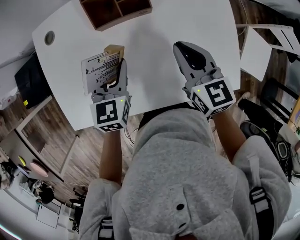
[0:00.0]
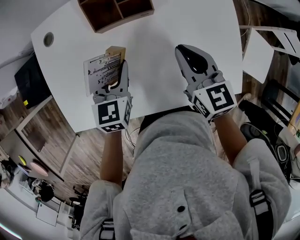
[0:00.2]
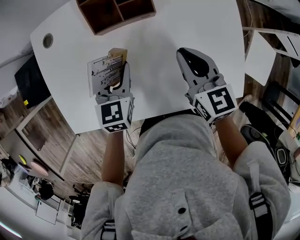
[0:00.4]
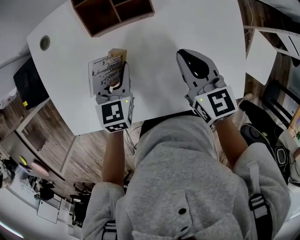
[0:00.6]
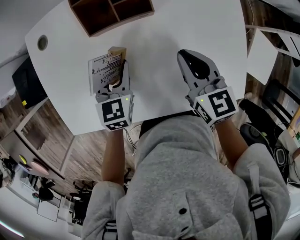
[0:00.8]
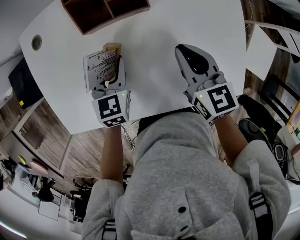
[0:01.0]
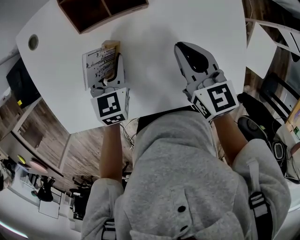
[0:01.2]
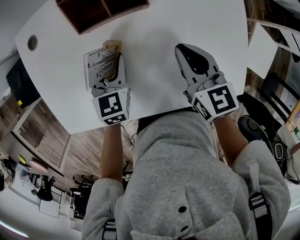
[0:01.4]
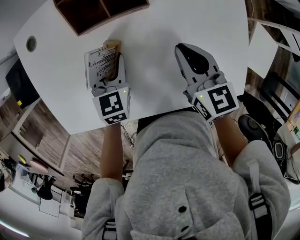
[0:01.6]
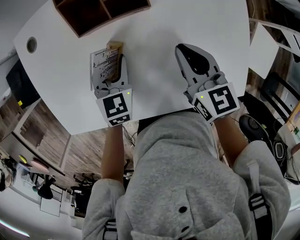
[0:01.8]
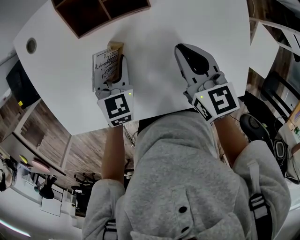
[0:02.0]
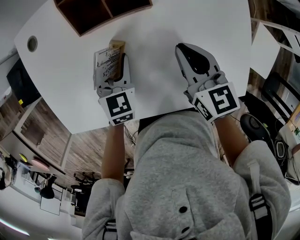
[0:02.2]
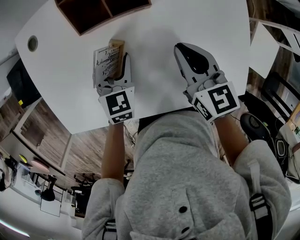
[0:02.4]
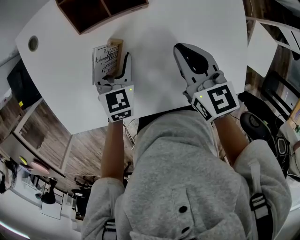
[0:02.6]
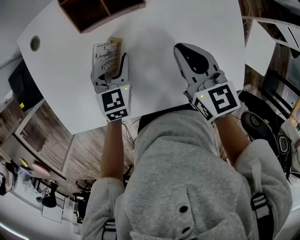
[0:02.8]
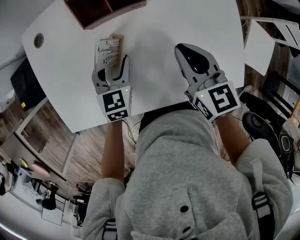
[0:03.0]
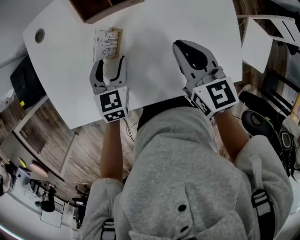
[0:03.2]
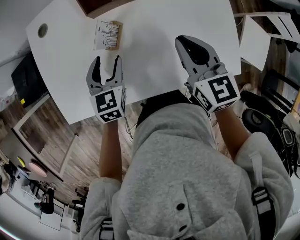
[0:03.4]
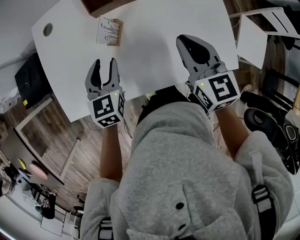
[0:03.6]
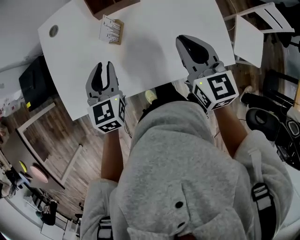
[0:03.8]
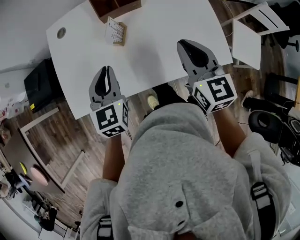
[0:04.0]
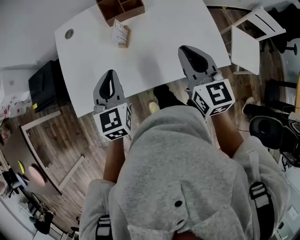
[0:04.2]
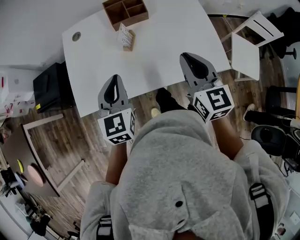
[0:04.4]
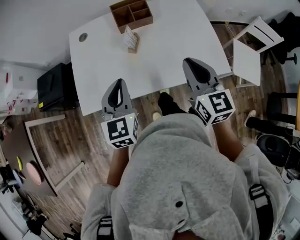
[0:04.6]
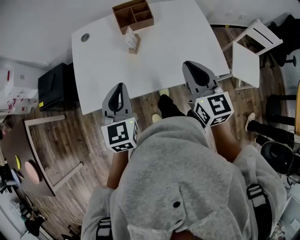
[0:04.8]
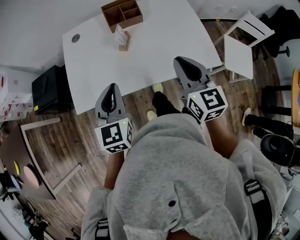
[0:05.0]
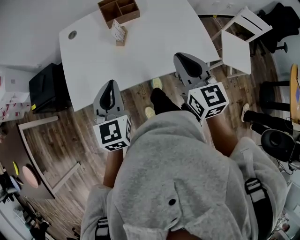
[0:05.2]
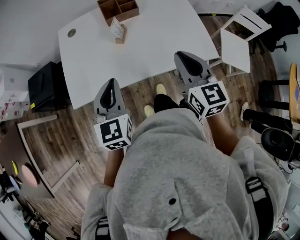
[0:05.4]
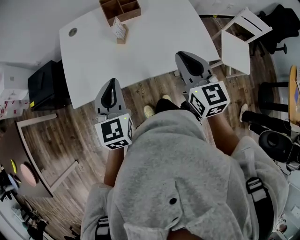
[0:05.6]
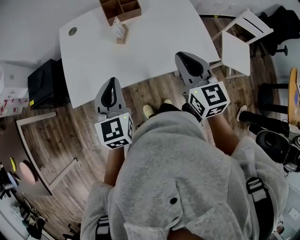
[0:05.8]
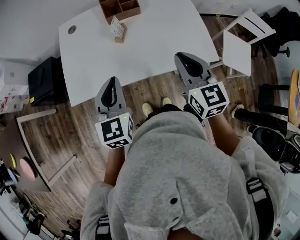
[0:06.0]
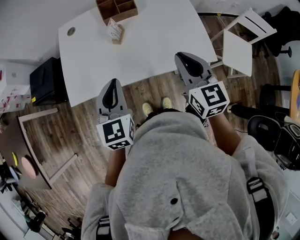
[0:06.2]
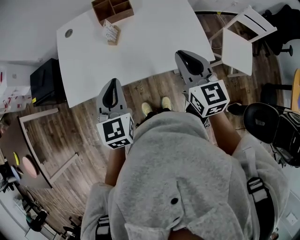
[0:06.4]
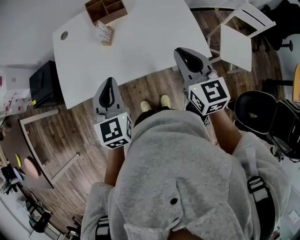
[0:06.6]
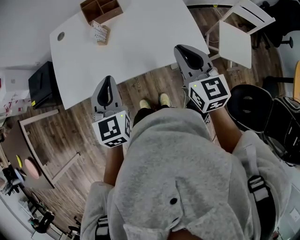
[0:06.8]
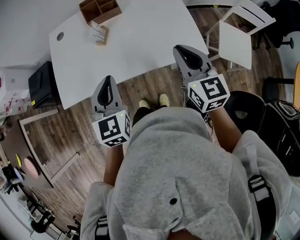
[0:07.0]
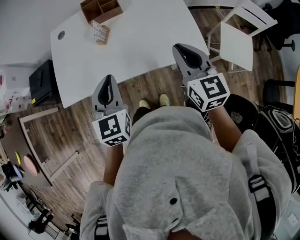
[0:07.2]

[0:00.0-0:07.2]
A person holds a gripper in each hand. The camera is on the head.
0:00.0 to 0:01.4: The grippers both shift downward by approximately 5 cm.
0:01.4 to 0:02.8: The grippers move only a little.
0:02.8 to 0:04.4: The left gripper shifts approximately 30 cm upward and backward, rotates about 20 degrees, and closes up; the right gripper is displaced backward and upward by roughly 25 cm, and swivels roughly 20 degrees.
0:04.4 to 0:05.8: The two grippers go approximately 5 cm backward.
0:05.8 to 0:07.2: Both grippers move to the right, about 10 cm.

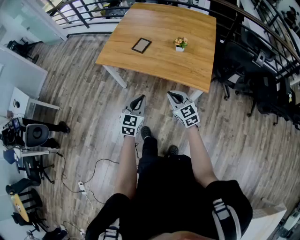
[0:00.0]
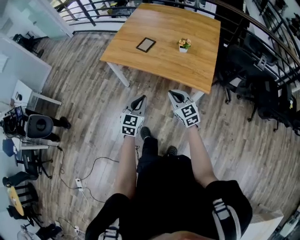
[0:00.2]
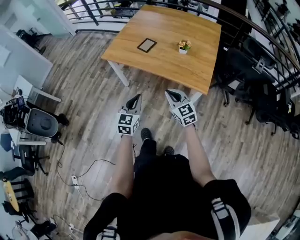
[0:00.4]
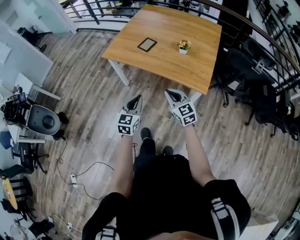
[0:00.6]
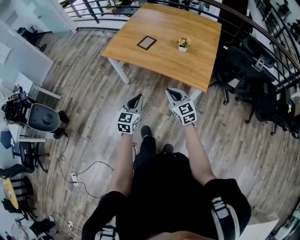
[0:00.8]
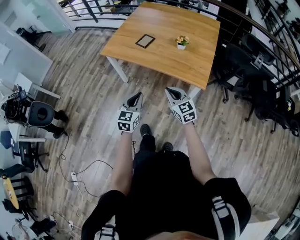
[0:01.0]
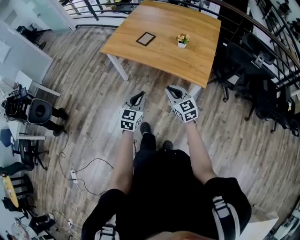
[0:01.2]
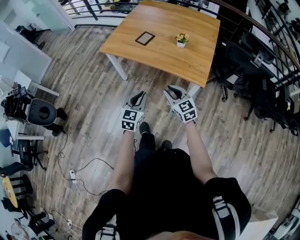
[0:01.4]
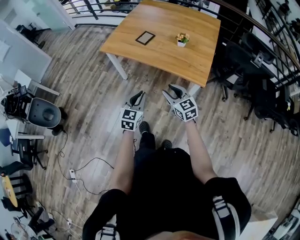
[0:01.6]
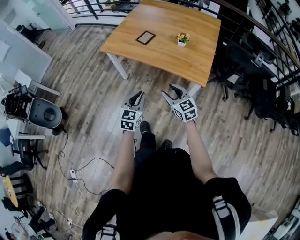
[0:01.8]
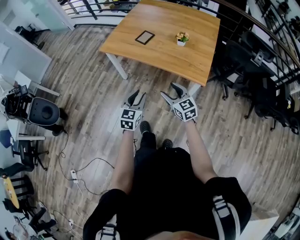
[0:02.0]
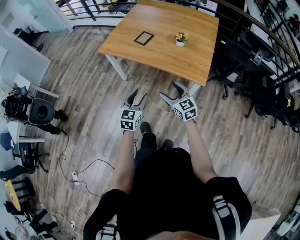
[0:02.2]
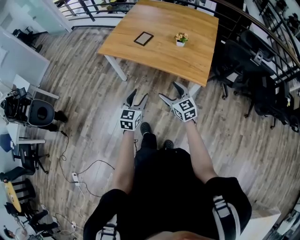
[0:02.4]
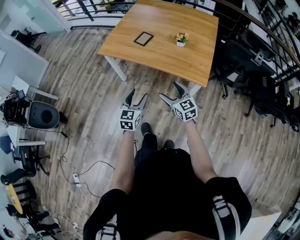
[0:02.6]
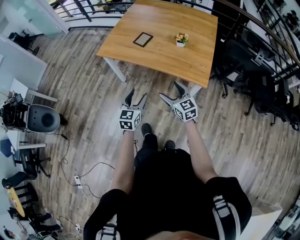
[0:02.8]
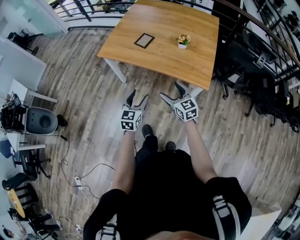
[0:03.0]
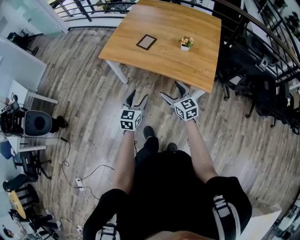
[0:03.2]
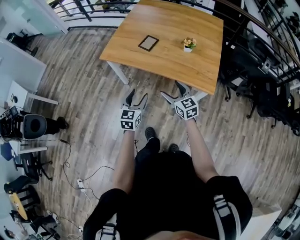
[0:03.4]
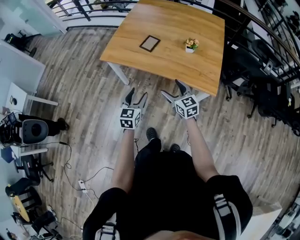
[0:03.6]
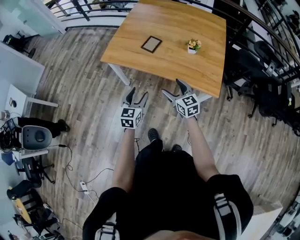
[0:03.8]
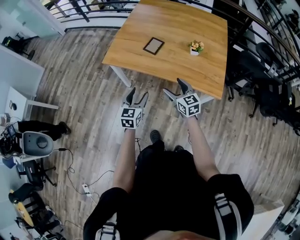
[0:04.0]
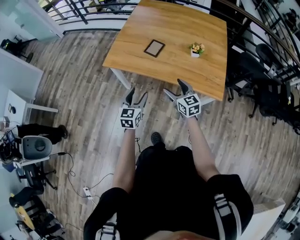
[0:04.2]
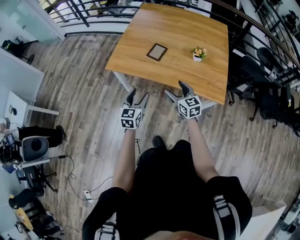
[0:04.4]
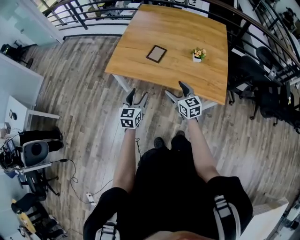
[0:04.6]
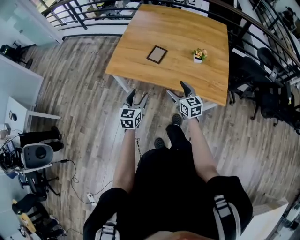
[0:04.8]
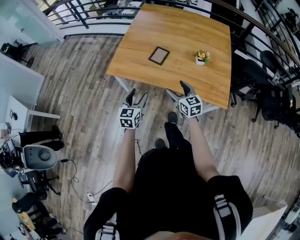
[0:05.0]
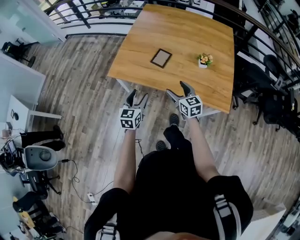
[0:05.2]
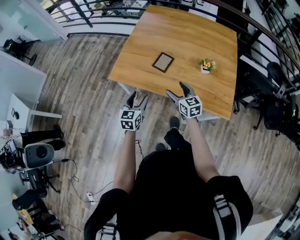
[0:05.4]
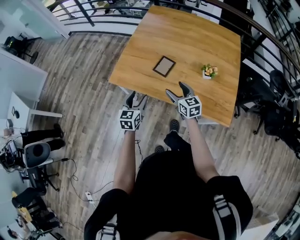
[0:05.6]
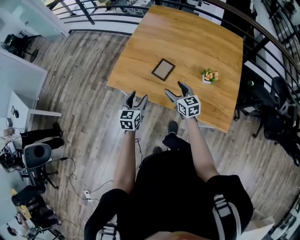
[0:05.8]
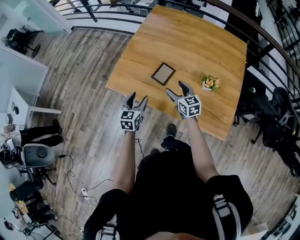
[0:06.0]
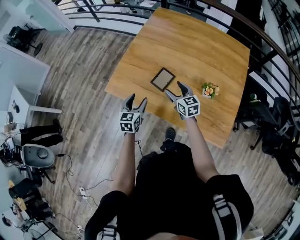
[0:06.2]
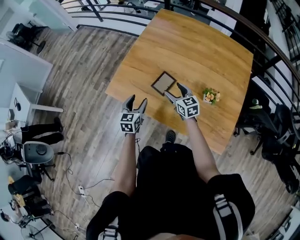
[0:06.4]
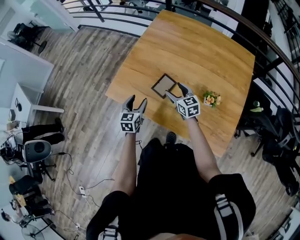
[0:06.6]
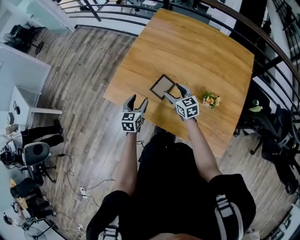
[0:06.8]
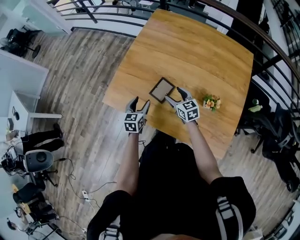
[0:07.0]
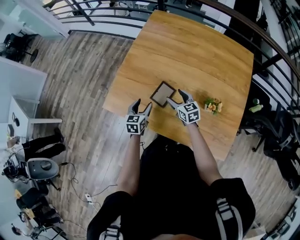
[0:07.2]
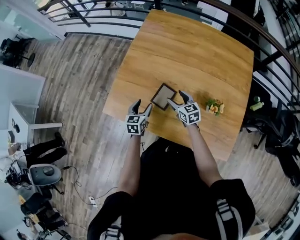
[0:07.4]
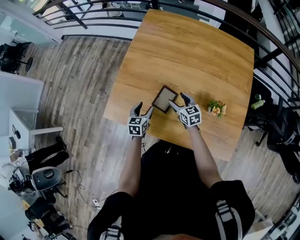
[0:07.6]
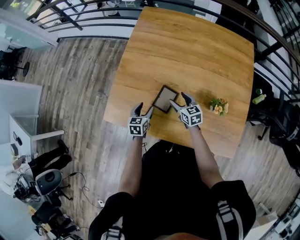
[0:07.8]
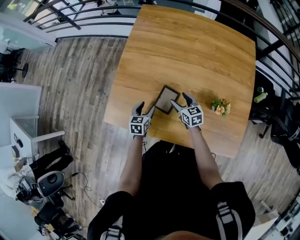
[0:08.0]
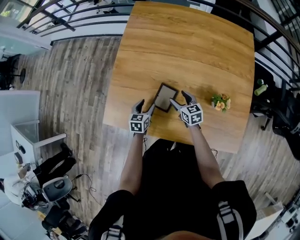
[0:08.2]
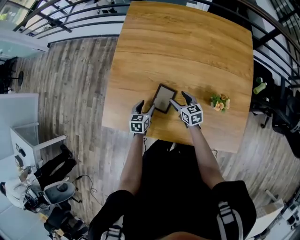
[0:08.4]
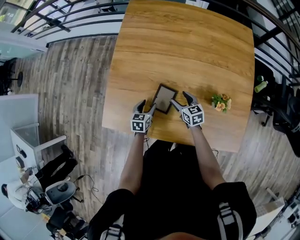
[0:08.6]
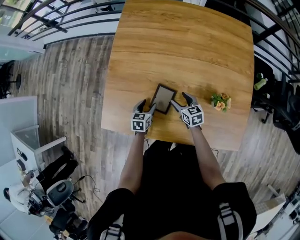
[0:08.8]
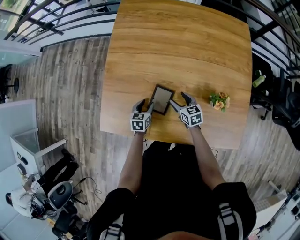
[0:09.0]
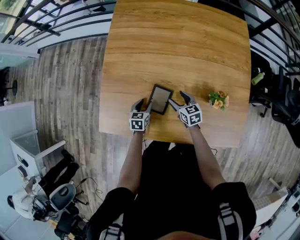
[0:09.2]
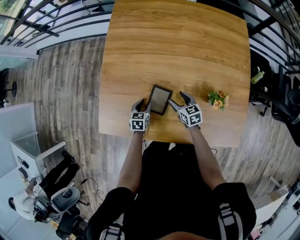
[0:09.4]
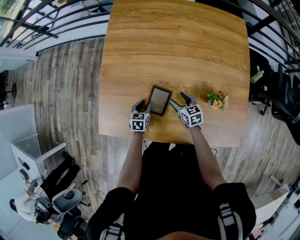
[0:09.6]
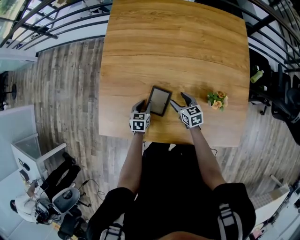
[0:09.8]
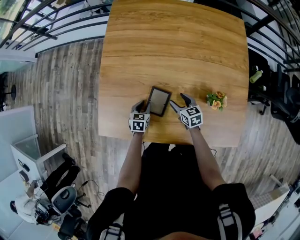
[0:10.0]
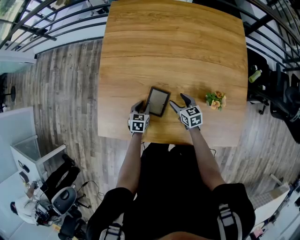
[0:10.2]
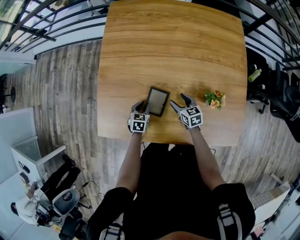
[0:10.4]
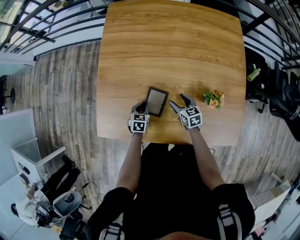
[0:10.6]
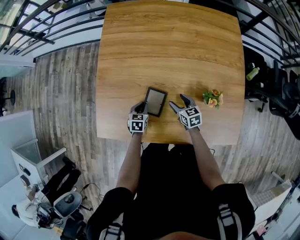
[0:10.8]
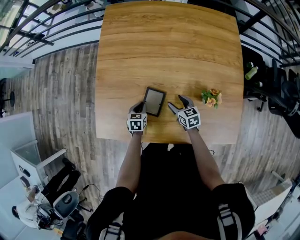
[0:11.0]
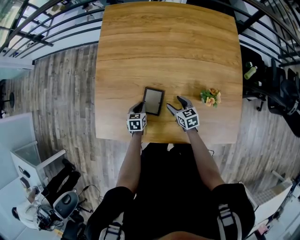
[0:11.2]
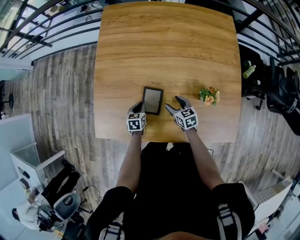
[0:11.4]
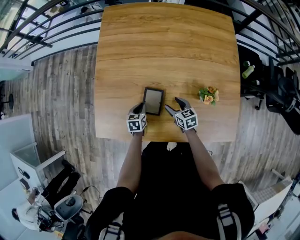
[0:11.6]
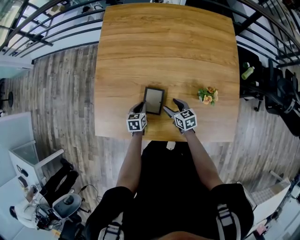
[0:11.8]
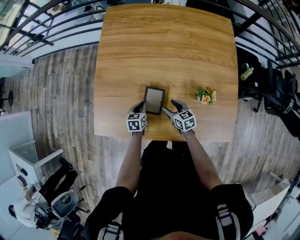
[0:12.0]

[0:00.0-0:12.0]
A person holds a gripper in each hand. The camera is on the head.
0:00.0 to 0:01.6: Both grippers travel together backward, some 5 cm. The right gripper opens up.
0:01.6 to 0:03.0: Both grippers travel together forward, approximately 5 cm. The right gripper opens its fingers, while the left gripper opens its fingers.
0:03.0 to 0:04.4: Both grippers travel together forward and to the left, about 20 cm.
0:04.4 to 0:06.0: The grippers both shift forward by approximately 25 cm.
0:06.0 to 0:07.6: Both grippers move forward and downward, approximately 20 cm.
0:07.6 to 0:09.0: The grippers both shift downward by about 10 cm.
0:09.0 to 0:10.4: The left gripper closes up.
0:10.4 to 0:12.0: The right gripper changes place by roughly 5 cm.

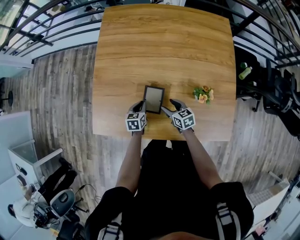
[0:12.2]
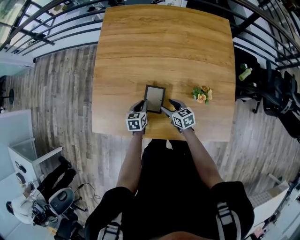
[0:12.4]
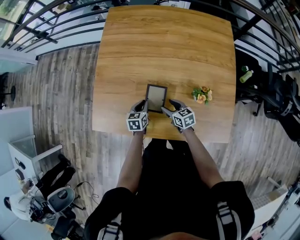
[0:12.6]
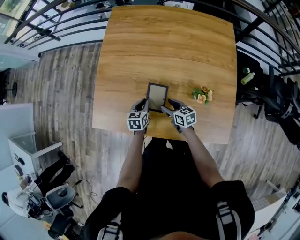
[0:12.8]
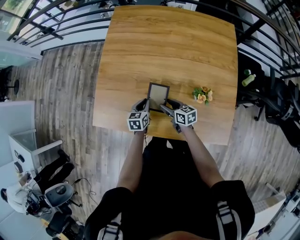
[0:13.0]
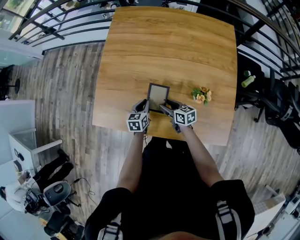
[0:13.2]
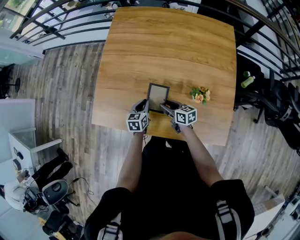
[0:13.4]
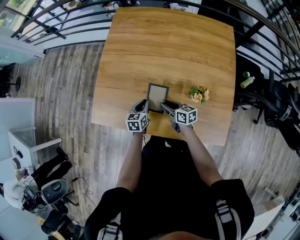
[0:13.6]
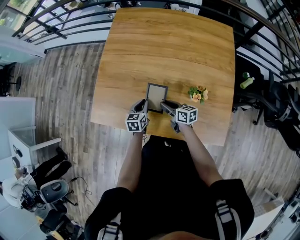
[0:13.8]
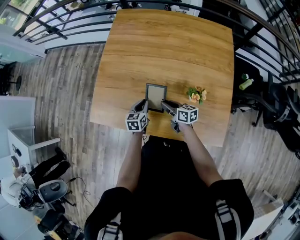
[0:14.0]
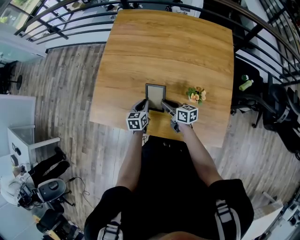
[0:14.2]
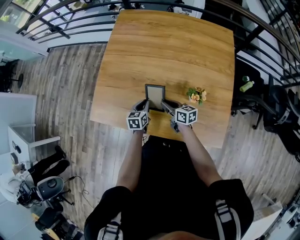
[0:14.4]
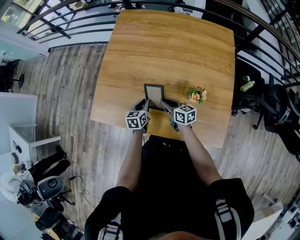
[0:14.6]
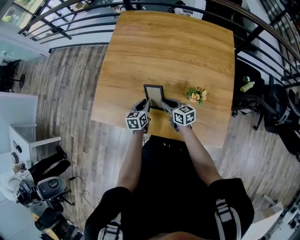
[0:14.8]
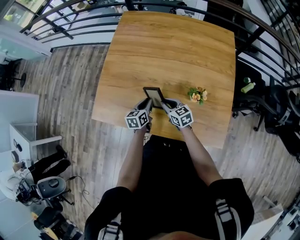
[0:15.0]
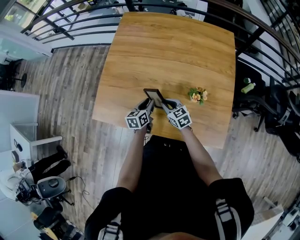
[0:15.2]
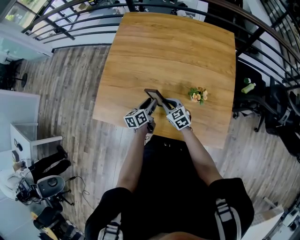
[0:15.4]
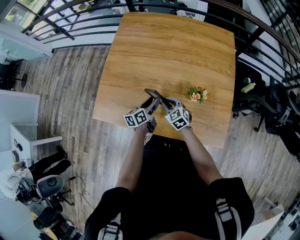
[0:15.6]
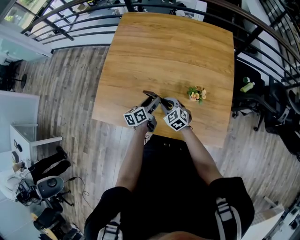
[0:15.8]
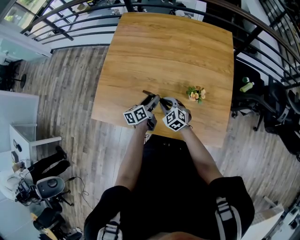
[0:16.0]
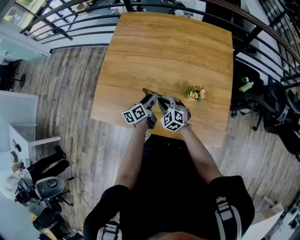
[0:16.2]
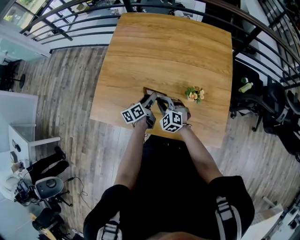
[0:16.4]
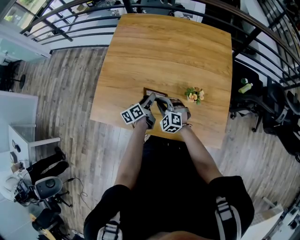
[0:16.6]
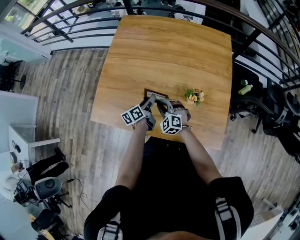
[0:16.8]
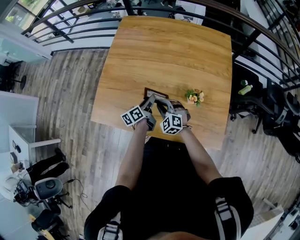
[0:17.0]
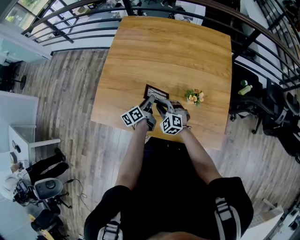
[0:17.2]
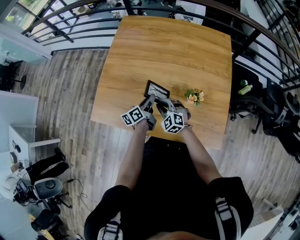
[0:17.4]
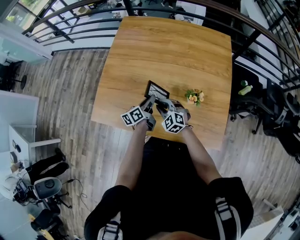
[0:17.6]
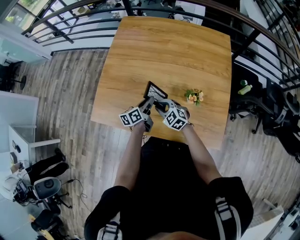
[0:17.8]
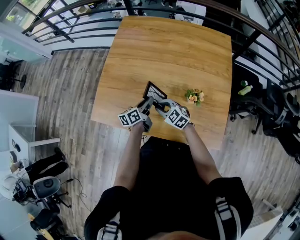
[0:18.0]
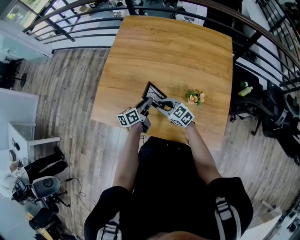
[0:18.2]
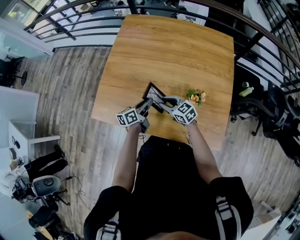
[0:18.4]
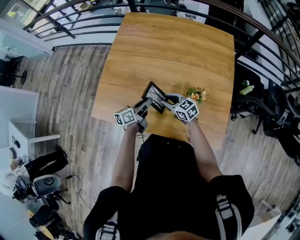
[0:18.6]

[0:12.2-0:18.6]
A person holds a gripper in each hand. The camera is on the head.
0:12.2 to 0:13.8: The left gripper moves upward, about 5 cm. The right gripper turns by about 30 degrees, and closes.
0:13.8 to 0:15.4: The right gripper rotates around the line of its fingers by roughly 40 degrees, counterclockwise from behind. Meanwhile the left gripper changes its angle by about 30 degrees, and opens.
0:15.4 to 0:17.0: The right gripper swivels about 40 degrees.
0:17.0 to 0:18.6: The right gripper twists about 40 degrees clockwise, seen from behind.
